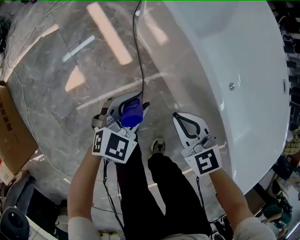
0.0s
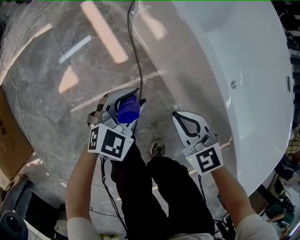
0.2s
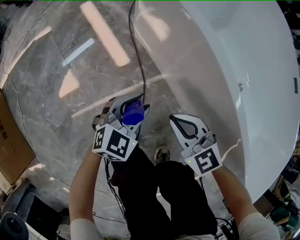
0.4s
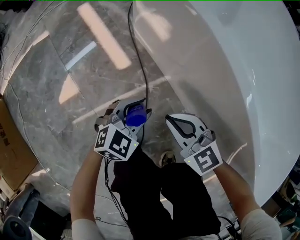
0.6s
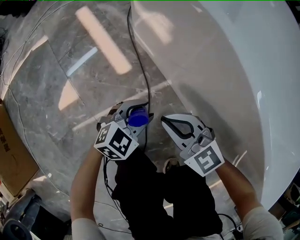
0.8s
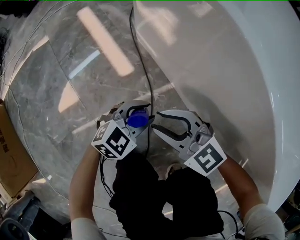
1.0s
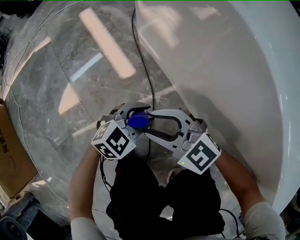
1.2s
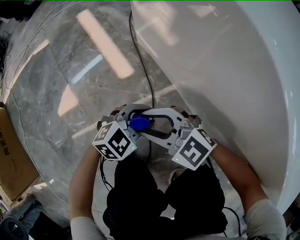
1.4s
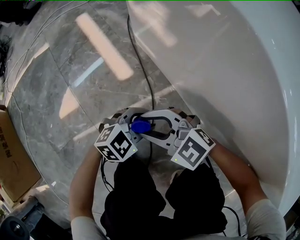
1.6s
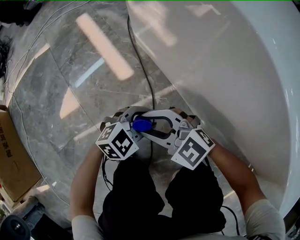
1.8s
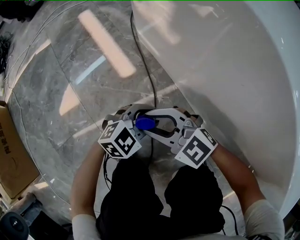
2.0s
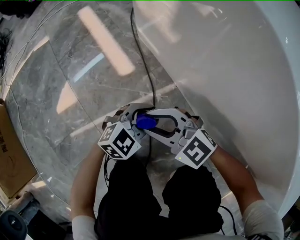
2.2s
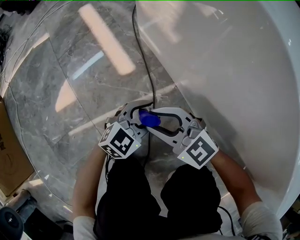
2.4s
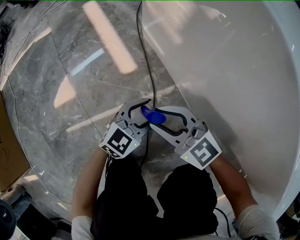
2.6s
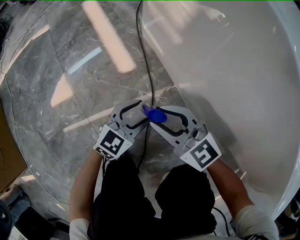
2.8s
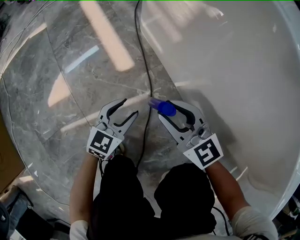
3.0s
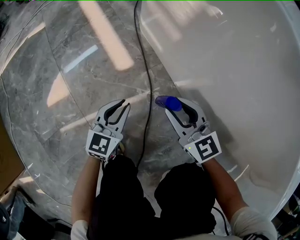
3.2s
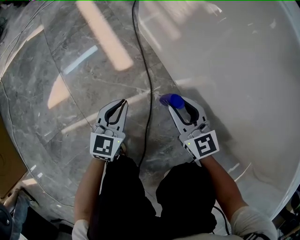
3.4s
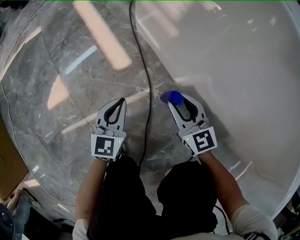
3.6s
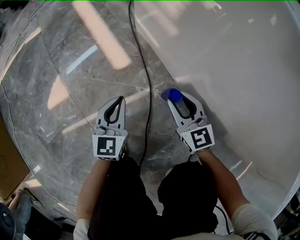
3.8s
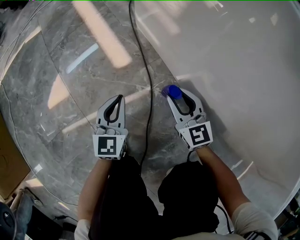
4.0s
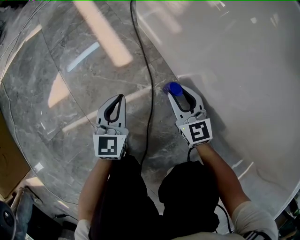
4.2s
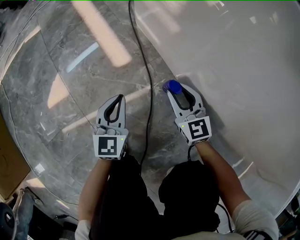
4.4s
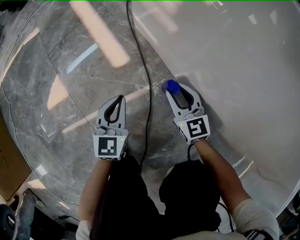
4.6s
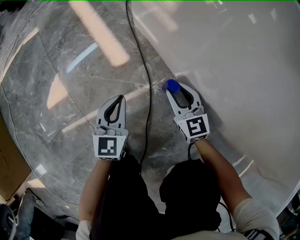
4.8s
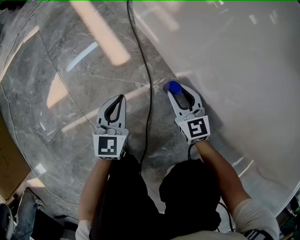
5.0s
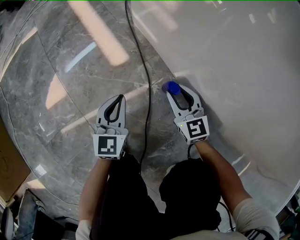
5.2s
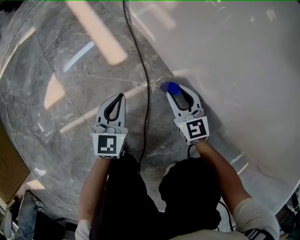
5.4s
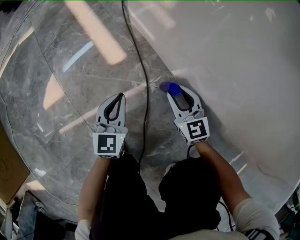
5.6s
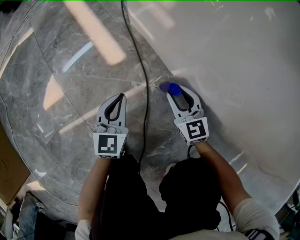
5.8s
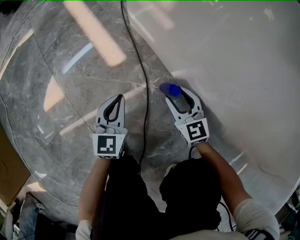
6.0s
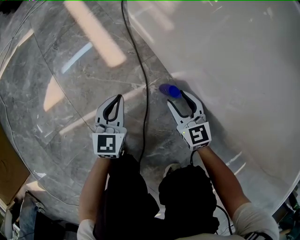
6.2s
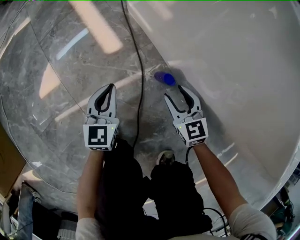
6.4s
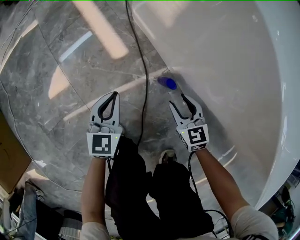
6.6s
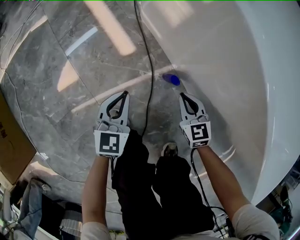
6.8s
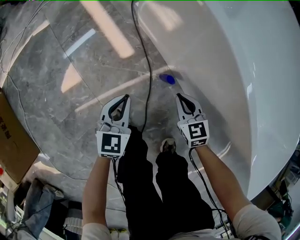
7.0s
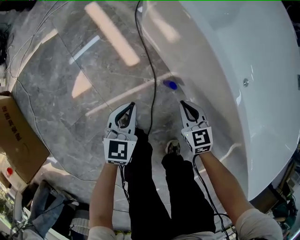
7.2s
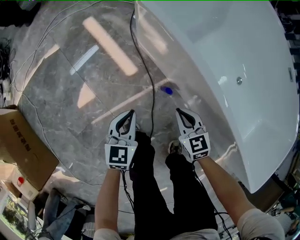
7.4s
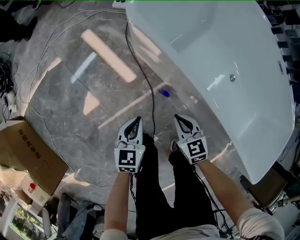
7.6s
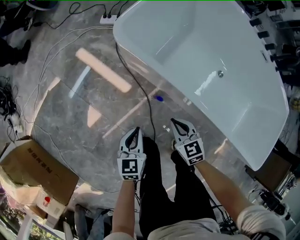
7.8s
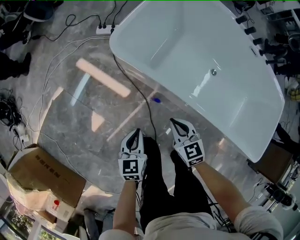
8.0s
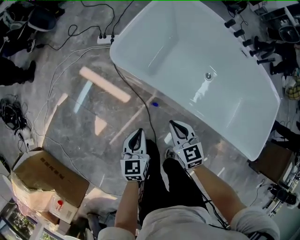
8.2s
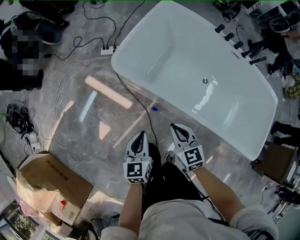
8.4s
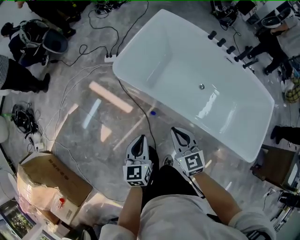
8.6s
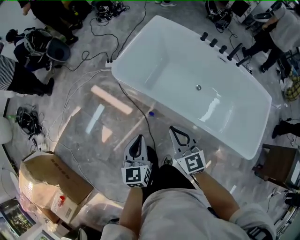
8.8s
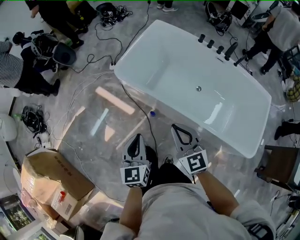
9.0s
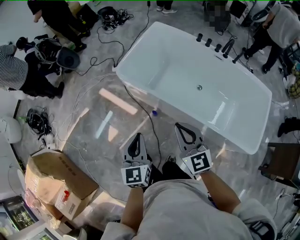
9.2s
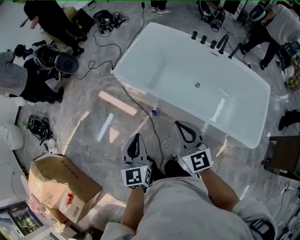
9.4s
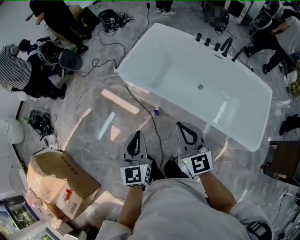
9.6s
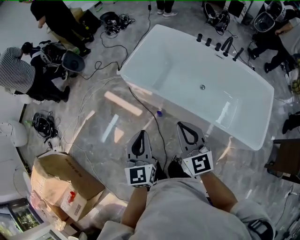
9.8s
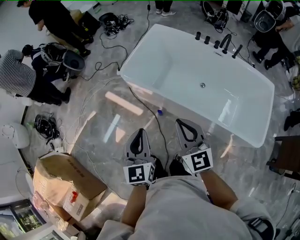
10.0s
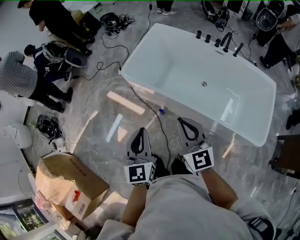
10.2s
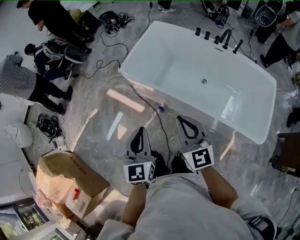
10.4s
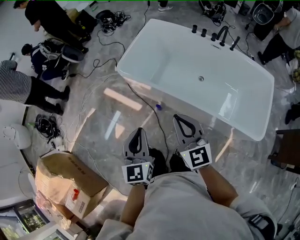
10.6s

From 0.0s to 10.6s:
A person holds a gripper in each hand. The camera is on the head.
From 0.0s to 1.6s: Both grippers travel together downward, roughly 25 cm. The right gripper swivels some 30 degrees, and opens its fingers; the left gripper turns by about 30 degrees.
From 1.6s to 3.0s: The left gripper changes place by approximately 10 cm, and rotates about 40 degrees; the right gripper moves approximately 5 cm, and rotates approximately 30 degrees.
From 3.0s to 4.6s: The left gripper swivels roughly 20 degrees, and closes its fingers, while the right gripper travels downward and to the right by some 15 cm, and turns by some 20 degrees.
From 4.6s to 6.0s: The grippers make only small movements.
From 6.0s to 7.6s: Both grippers travel together upward, roughly 35 cm. The right gripper closes.
From 7.6s to 9.0s: The two grippers go some 50 cm upward. The right gripper swivels about 30 degrees.
From 9.0s to 10.6s: Both grippers travel together backward and upward, about 10 cm.

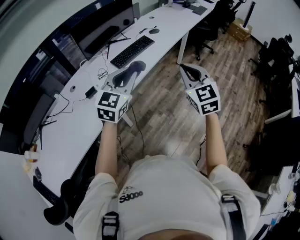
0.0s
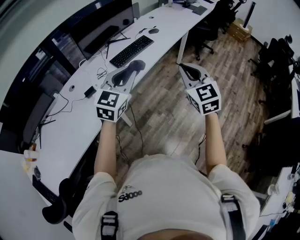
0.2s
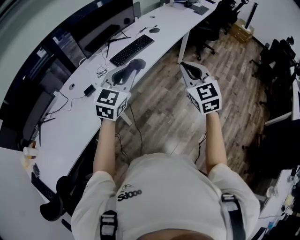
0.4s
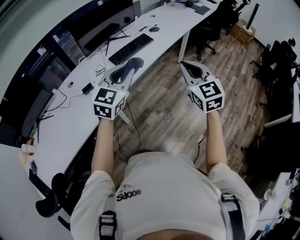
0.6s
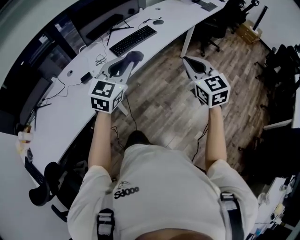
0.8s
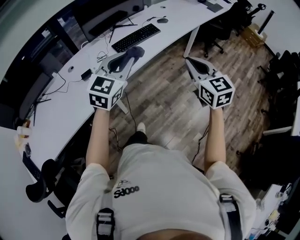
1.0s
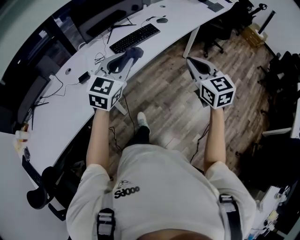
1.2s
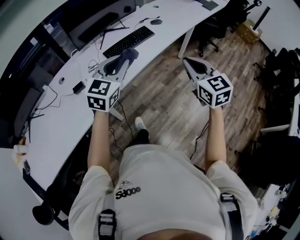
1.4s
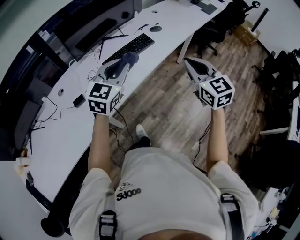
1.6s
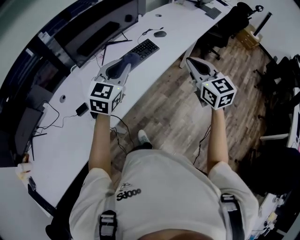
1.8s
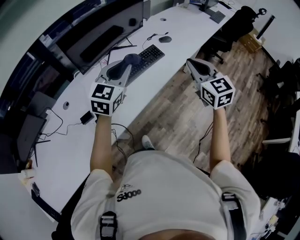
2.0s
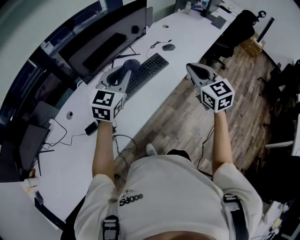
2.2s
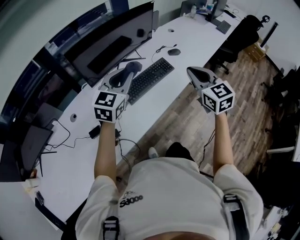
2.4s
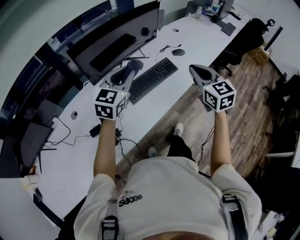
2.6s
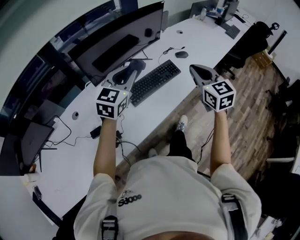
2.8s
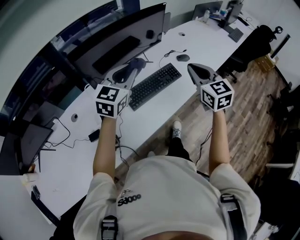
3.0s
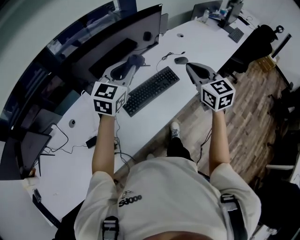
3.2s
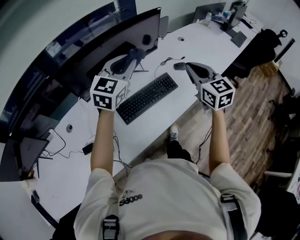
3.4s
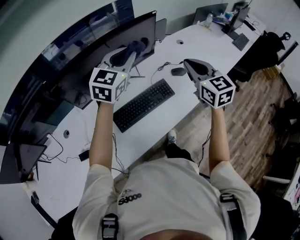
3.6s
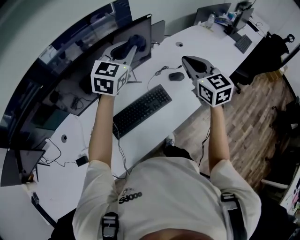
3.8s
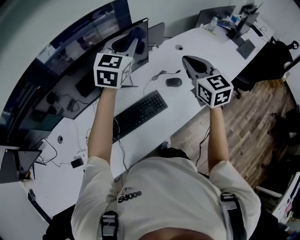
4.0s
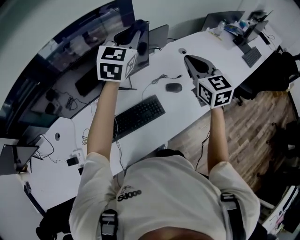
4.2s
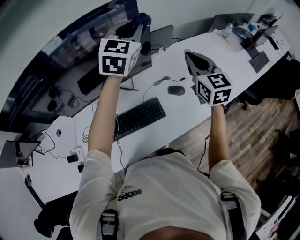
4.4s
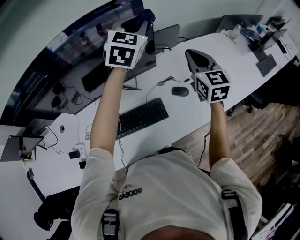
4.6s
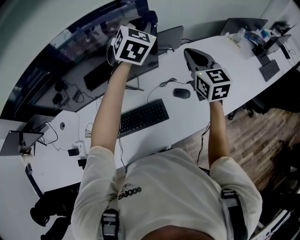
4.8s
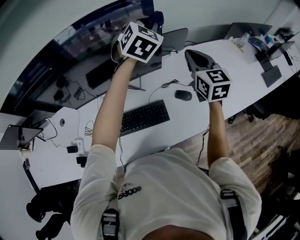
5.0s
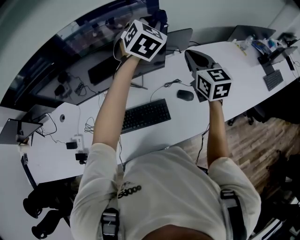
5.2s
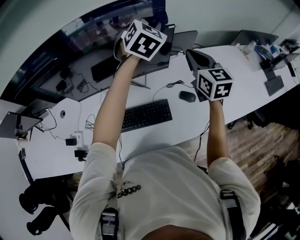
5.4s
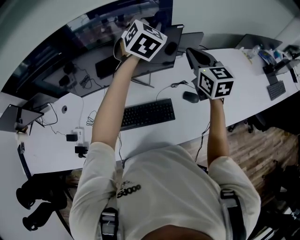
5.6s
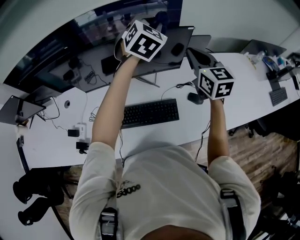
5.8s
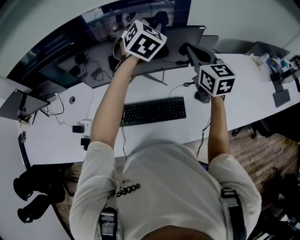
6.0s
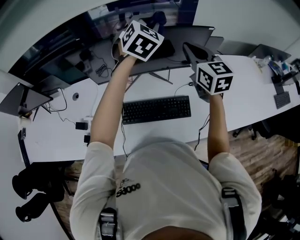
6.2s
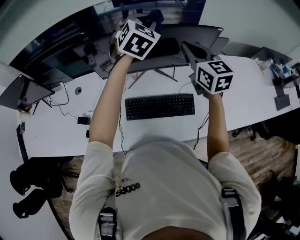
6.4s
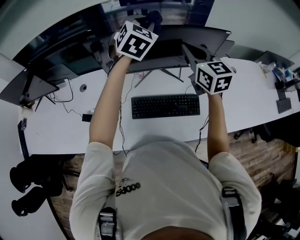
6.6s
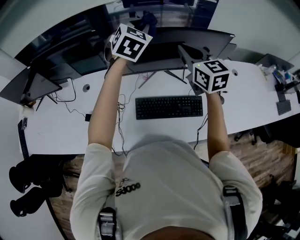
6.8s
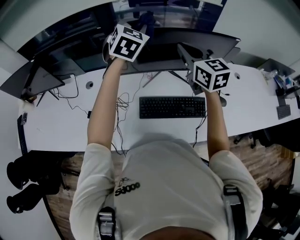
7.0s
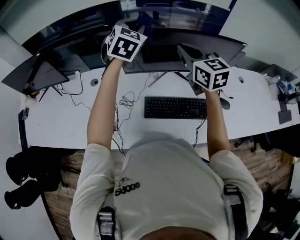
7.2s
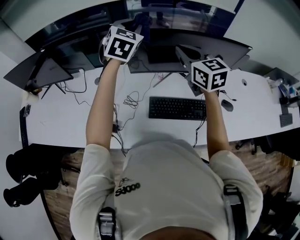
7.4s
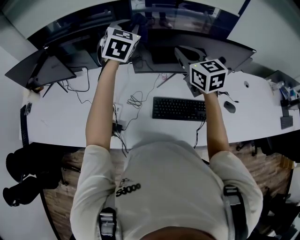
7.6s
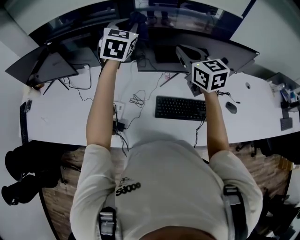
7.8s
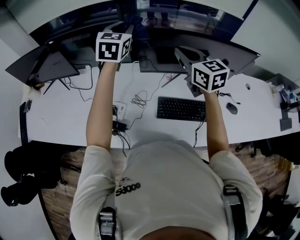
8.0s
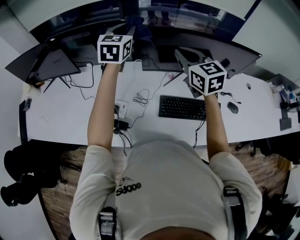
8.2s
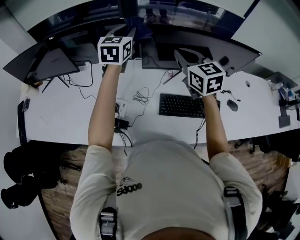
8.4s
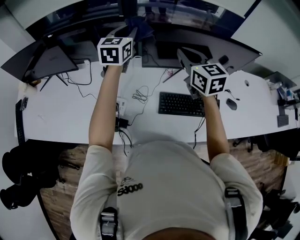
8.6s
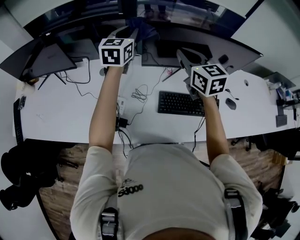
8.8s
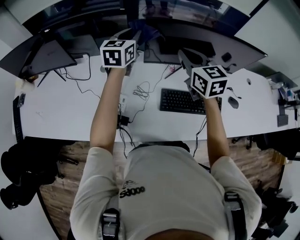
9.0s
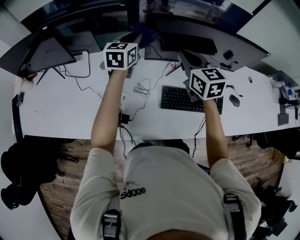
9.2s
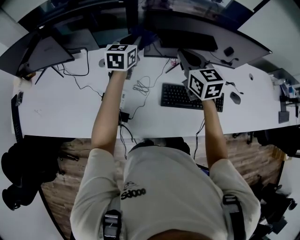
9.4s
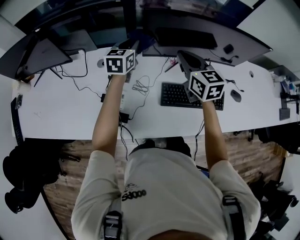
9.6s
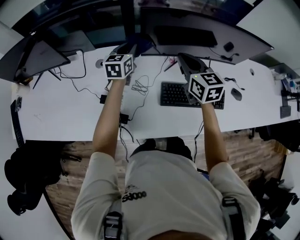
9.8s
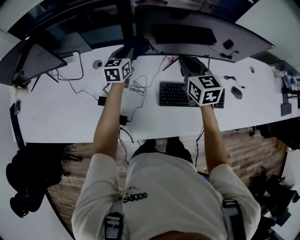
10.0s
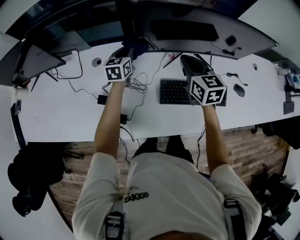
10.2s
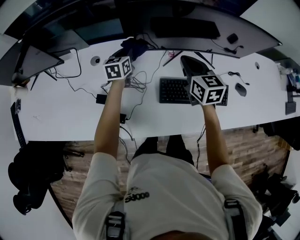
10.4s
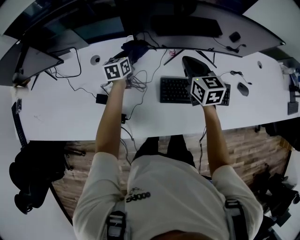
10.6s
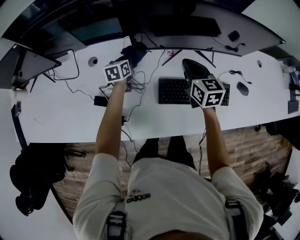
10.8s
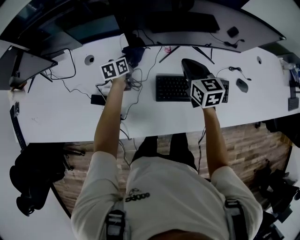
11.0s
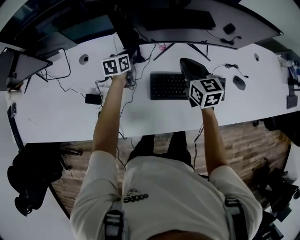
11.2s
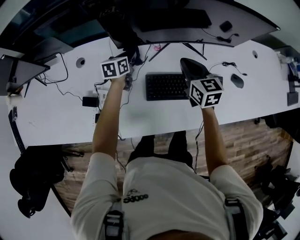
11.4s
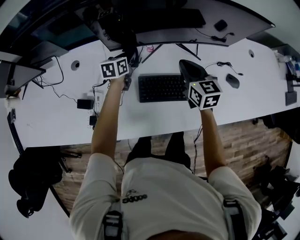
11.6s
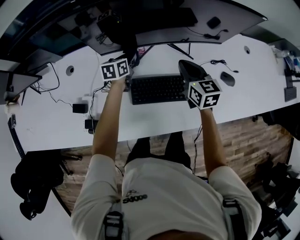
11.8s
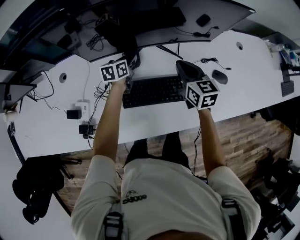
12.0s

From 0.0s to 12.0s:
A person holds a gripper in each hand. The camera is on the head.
From 0.0s to 1.6s: The two grippers go roughly 20 cm forward.
From 1.6s to 3.0s: Both grippers move forward, about 25 cm.
From 3.0s to 4.4s: The pair of grippers is taken forward and to the right, approximately 40 cm. The left gripper changes its angle by roughly 20 degrees.
From 4.4s to 6.0s: Both grippers move to the left, roughly 15 cm. The left gripper rotates some 30 degrees.
From 6.0s to 7.6s: The grippers both shift to the left by about 35 cm.
From 7.6s to 9.0s: The left gripper is displaced downward and to the left by about 15 cm, and swivels about 30 degrees. The right gripper heads to the left, covering some 5 cm.
From 9.0s to 10.4s: The right gripper heads downward and to the right, covering some 15 cm. The left gripper heads downward, covering some 25 cm, and turns by roughly 20 degrees.
From 10.4s to 12.0s: The grippers both shift to the right by roughly 25 cm. The left gripper turns by about 20 degrees.

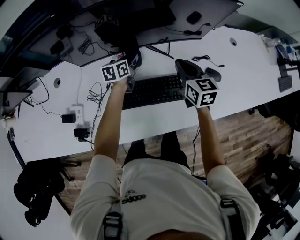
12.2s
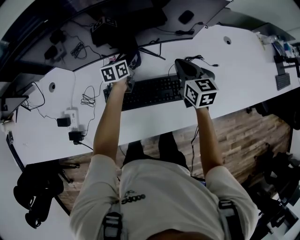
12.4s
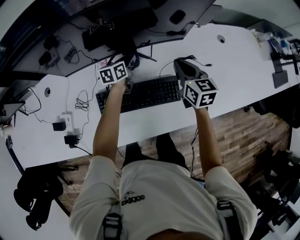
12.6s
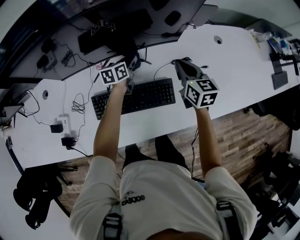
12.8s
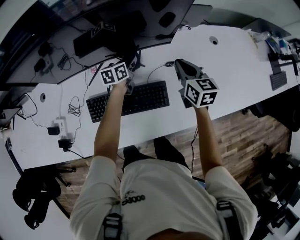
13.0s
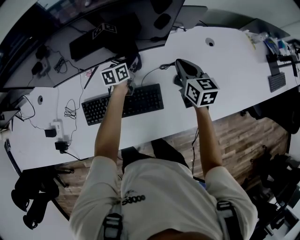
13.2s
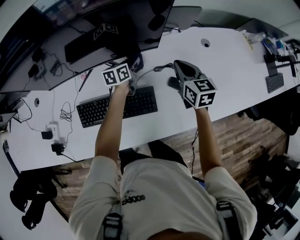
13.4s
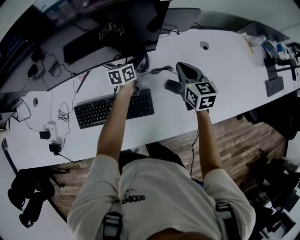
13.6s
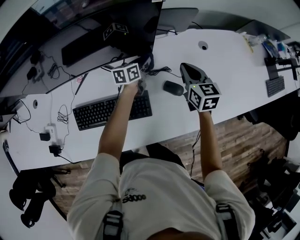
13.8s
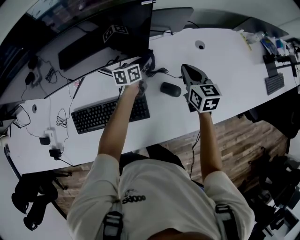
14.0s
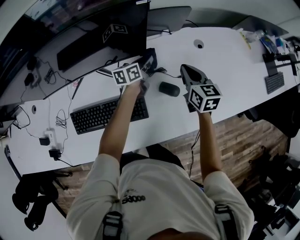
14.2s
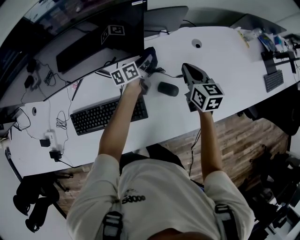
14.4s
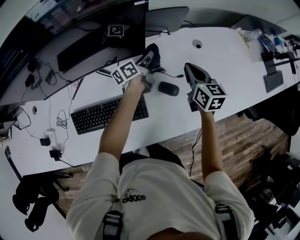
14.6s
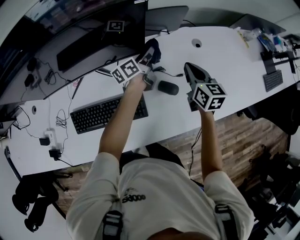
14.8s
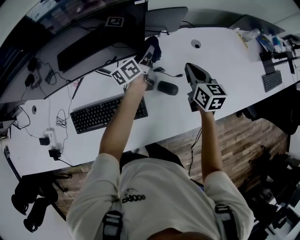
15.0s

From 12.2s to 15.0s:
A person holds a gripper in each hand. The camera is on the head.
From 12.2s to 13.6s: The grippers both shift to the right by approximately 25 cm.
From 13.6s to 15.0s: The right gripper heads to the right, covering approximately 10 cm; the left gripper shifts approximately 10 cm upward and to the right, and turns by some 30 degrees.
